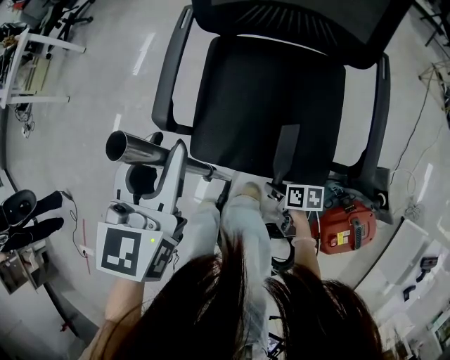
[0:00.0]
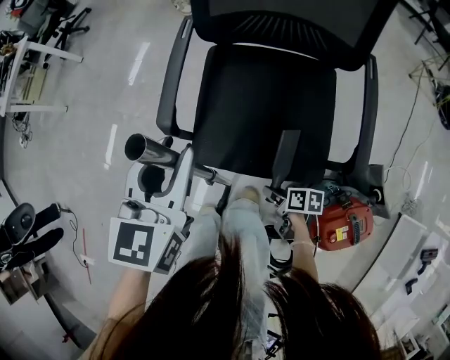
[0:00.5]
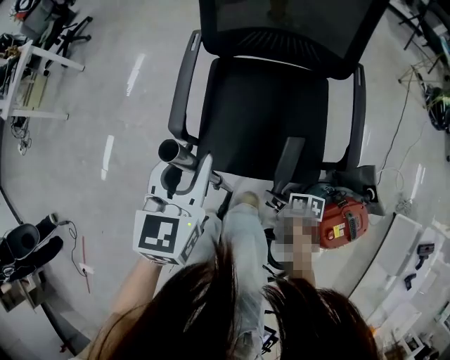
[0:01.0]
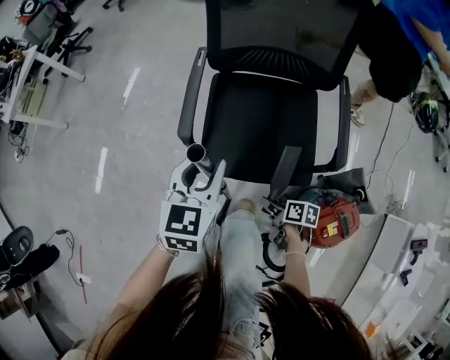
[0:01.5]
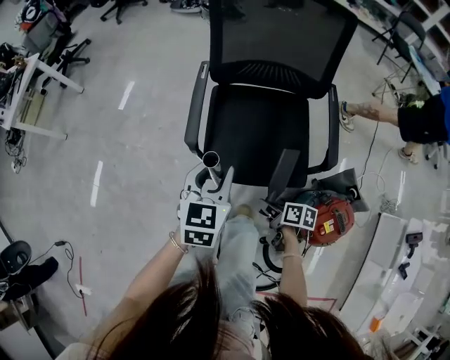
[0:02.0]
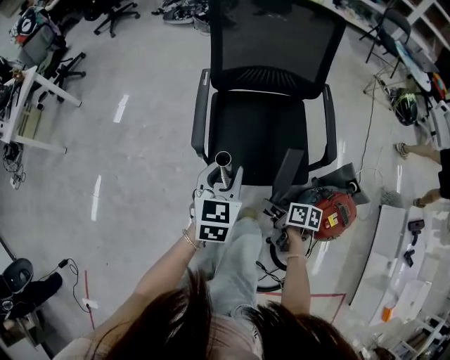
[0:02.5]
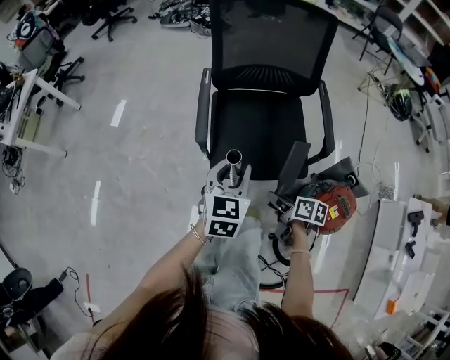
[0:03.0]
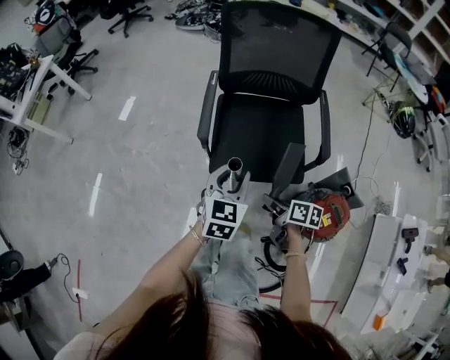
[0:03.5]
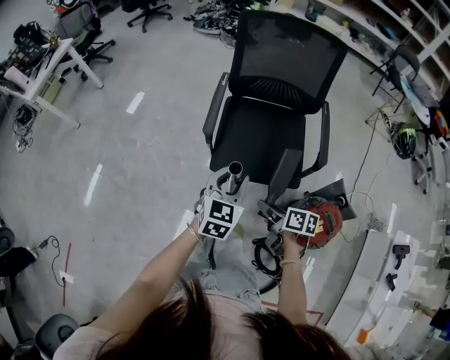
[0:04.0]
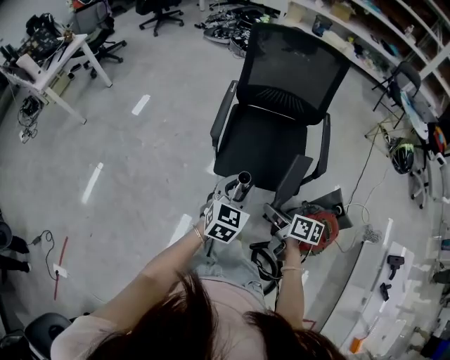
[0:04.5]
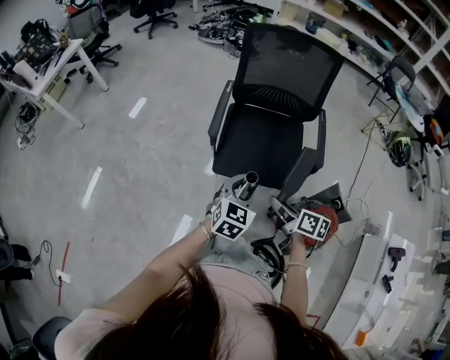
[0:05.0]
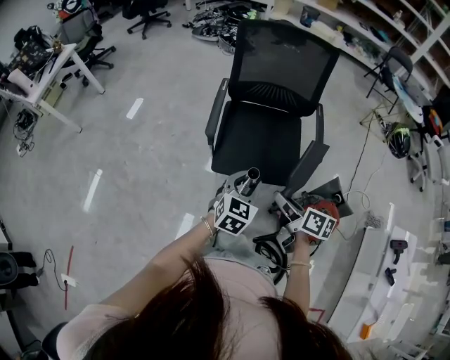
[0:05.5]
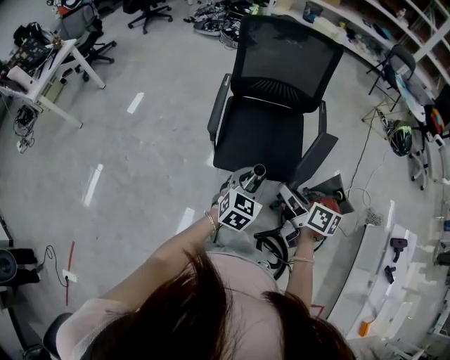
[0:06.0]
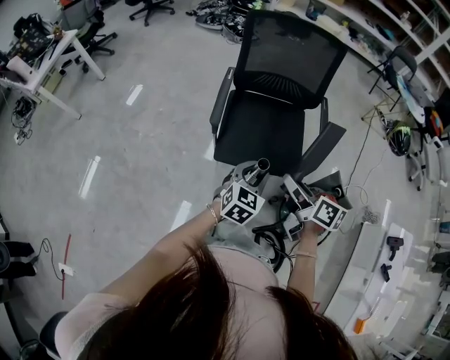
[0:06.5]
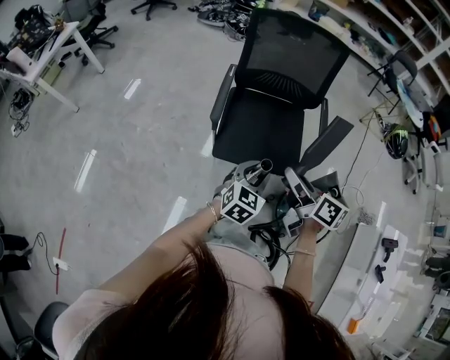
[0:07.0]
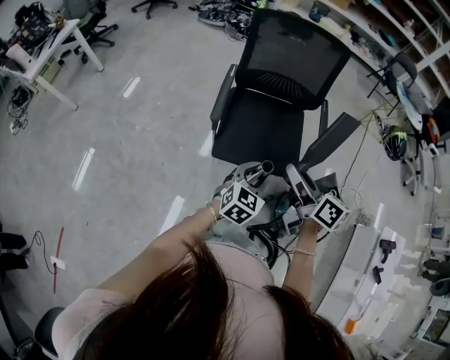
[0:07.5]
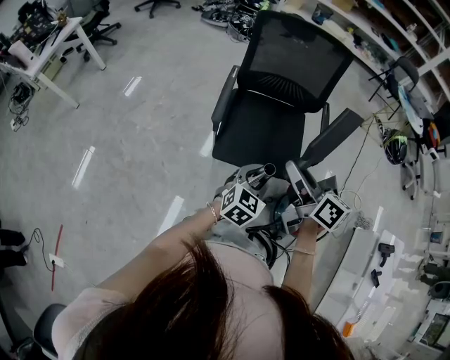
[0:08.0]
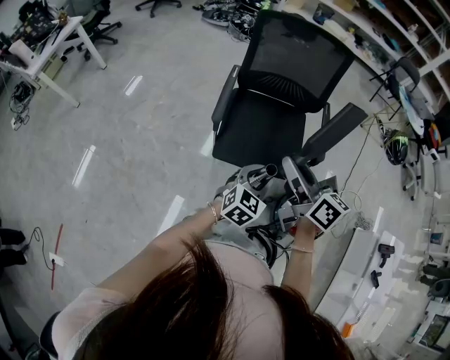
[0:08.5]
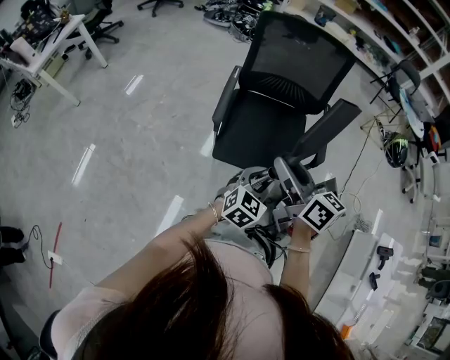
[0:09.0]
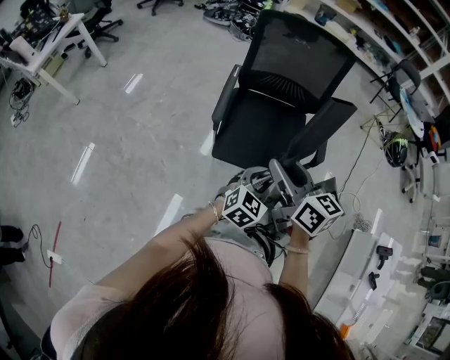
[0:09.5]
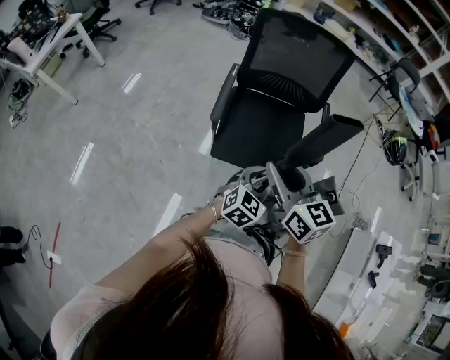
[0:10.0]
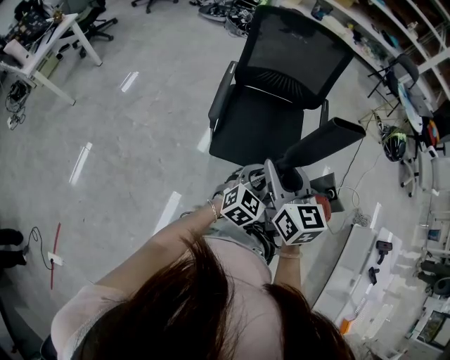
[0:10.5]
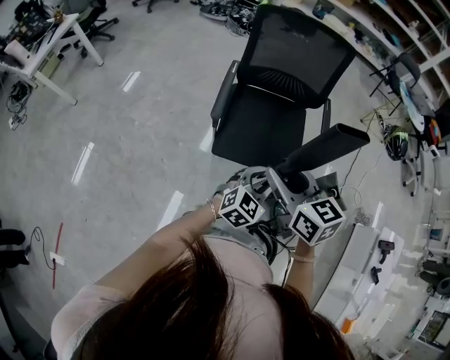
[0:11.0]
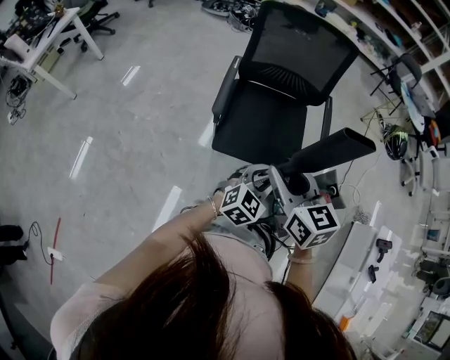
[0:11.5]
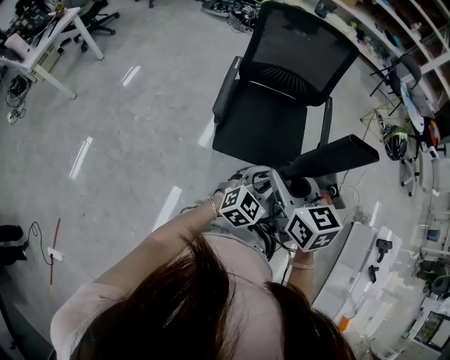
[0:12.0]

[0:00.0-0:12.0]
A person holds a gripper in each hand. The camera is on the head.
0.0 to 2.0 s: The left gripper goes approximately 5 cm backward, while the right gripper goes roughly 20 cm upward.
2.0 to 4.0 s: The right gripper goes approximately 15 cm upward and backward. Meanwhile the left gripper travels backward by approximately 15 cm.
4.0 to 6.0 s: The left gripper changes place by about 5 cm; the right gripper is displaced upward by roughly 15 cm.
6.0 to 8.0 s: The right gripper is displaced upward by about 10 cm.
8.0 to 10.0 s: The right gripper shifts by about 5 cm, and swivels roughly 30 degrees.
10.0 to 12.0 s: The grippers move only a little.

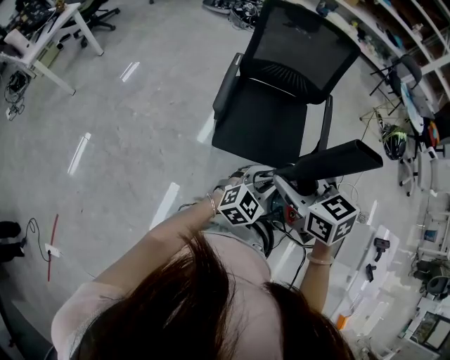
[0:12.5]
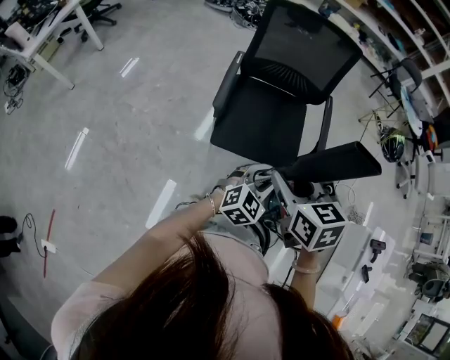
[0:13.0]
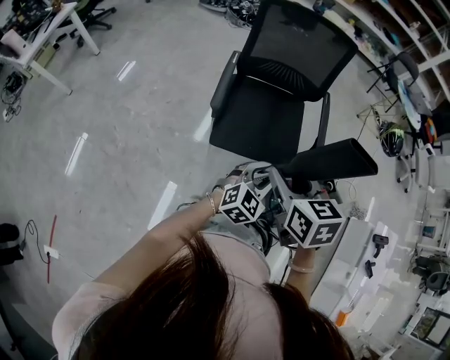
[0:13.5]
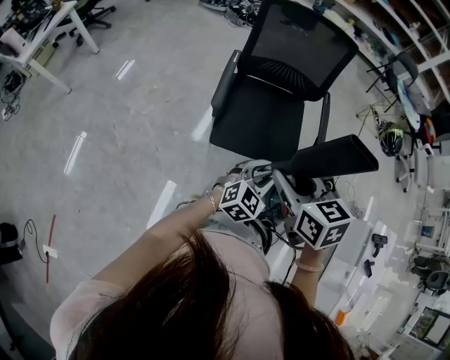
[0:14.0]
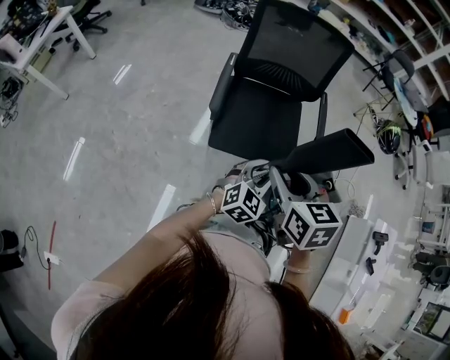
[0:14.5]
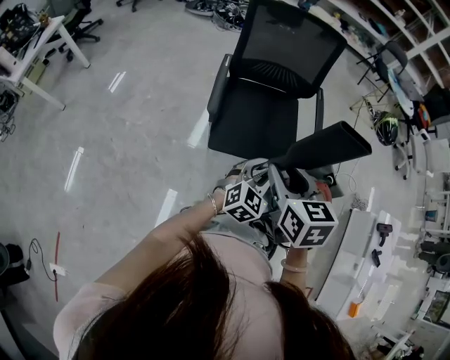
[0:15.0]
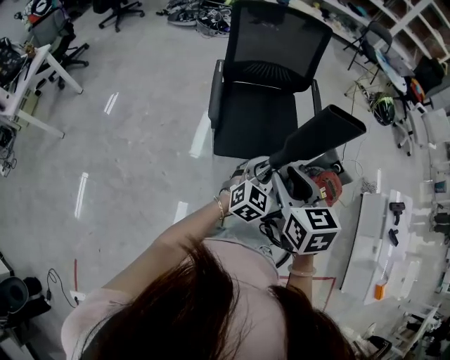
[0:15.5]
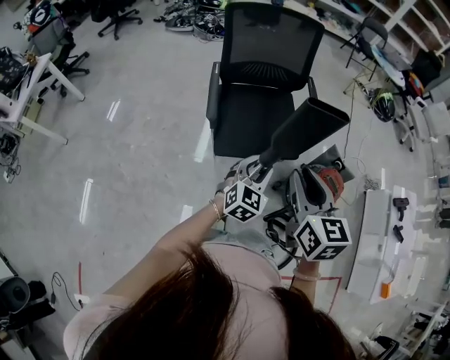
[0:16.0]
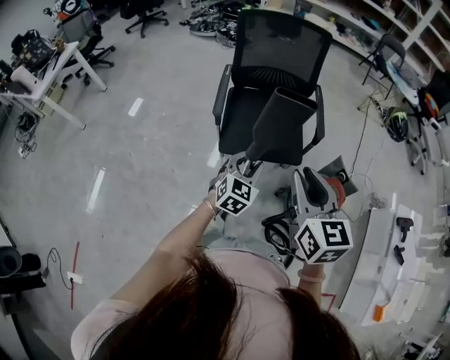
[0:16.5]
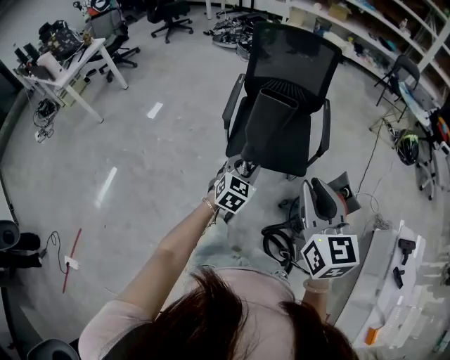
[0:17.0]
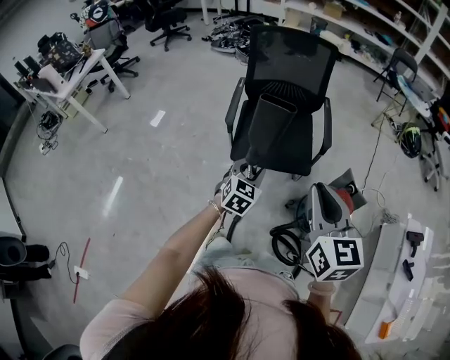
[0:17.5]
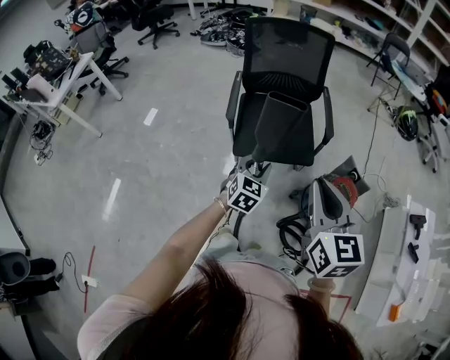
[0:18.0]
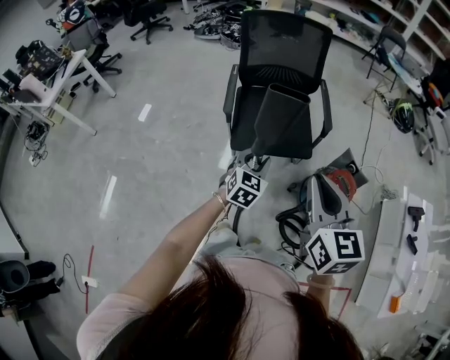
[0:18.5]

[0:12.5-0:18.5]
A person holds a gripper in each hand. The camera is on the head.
12.5 to 14.5 s: The right gripper changes its angle by some 20 degrees.
14.5 to 16.5 s: The left gripper travels backward by roughly 5 cm. The right gripper travels to the right, backward and upward by roughly 15 cm.
16.5 to 18.5 s: The right gripper heads backward, covering roughly 5 cm.

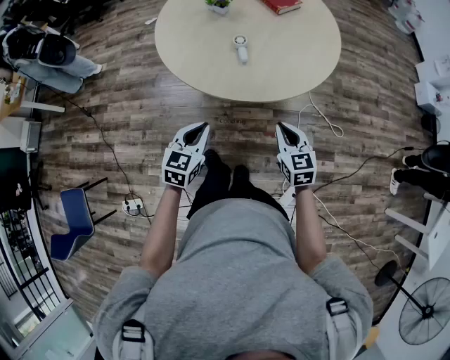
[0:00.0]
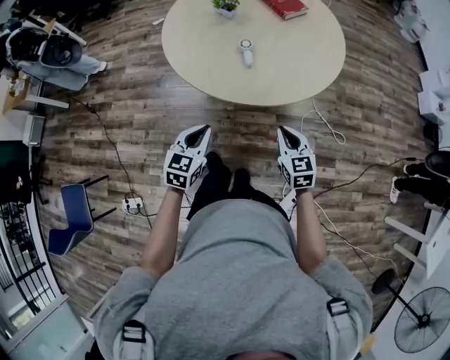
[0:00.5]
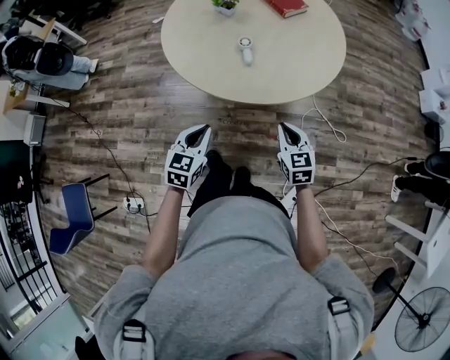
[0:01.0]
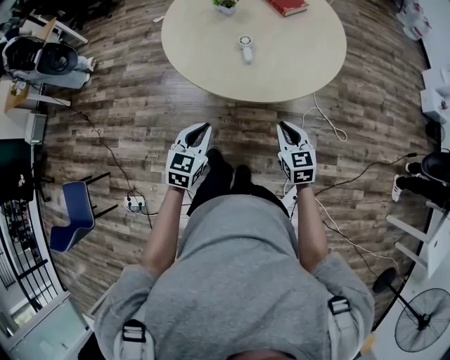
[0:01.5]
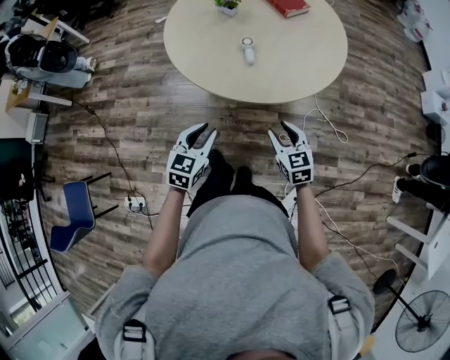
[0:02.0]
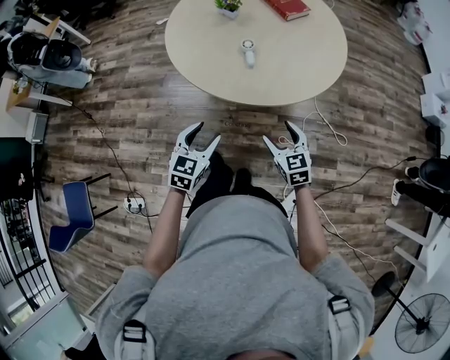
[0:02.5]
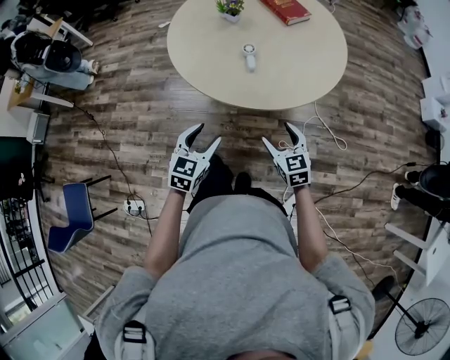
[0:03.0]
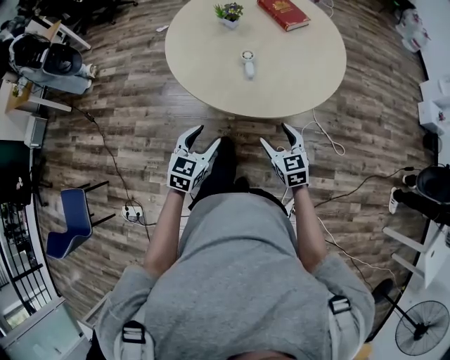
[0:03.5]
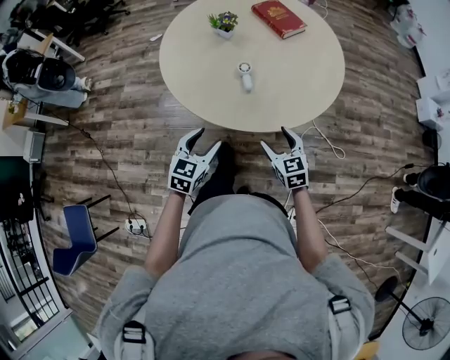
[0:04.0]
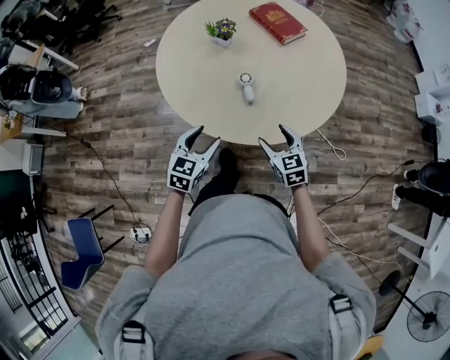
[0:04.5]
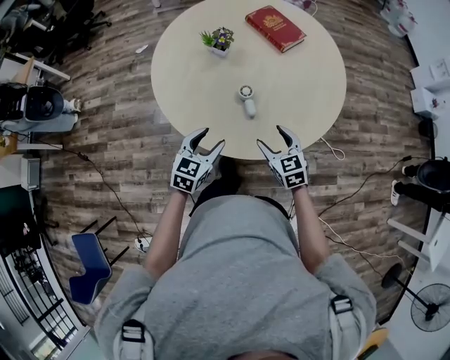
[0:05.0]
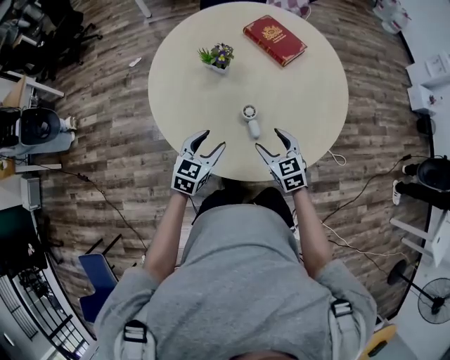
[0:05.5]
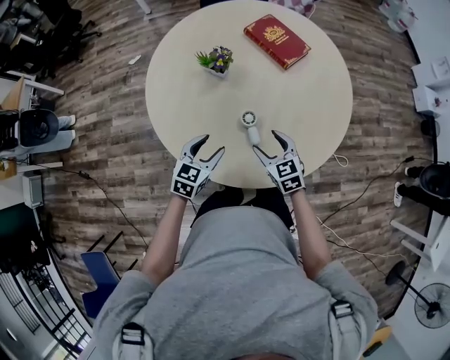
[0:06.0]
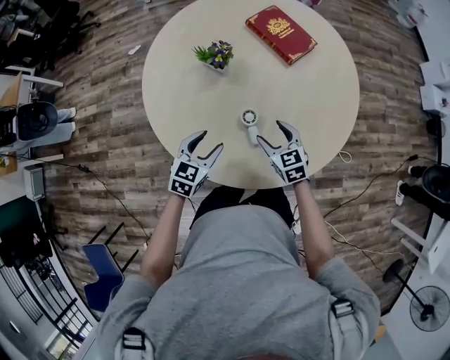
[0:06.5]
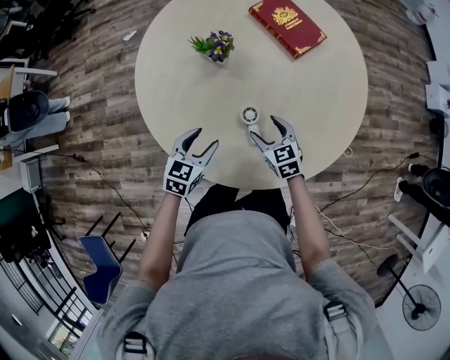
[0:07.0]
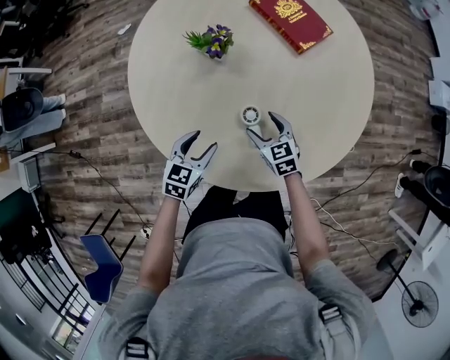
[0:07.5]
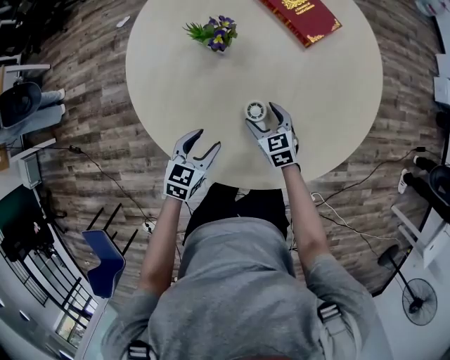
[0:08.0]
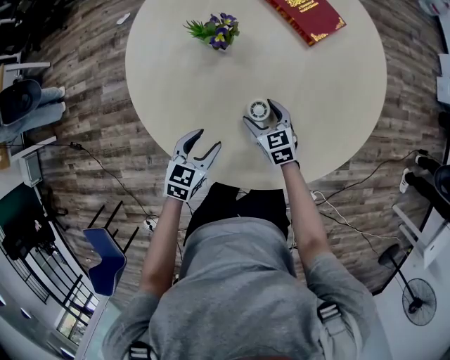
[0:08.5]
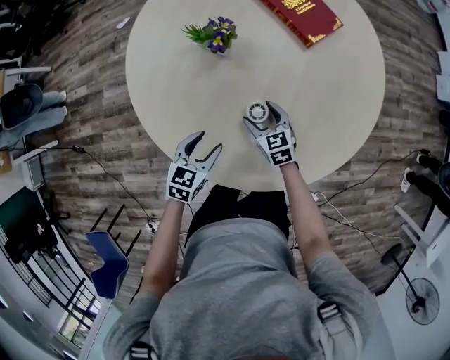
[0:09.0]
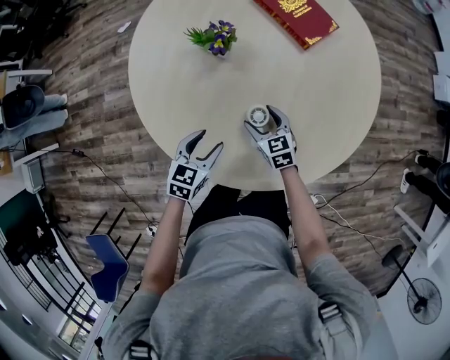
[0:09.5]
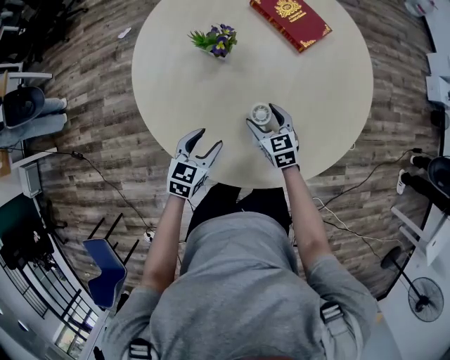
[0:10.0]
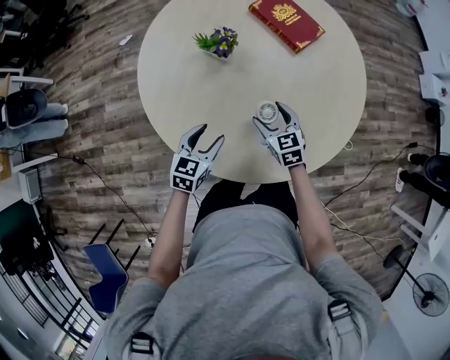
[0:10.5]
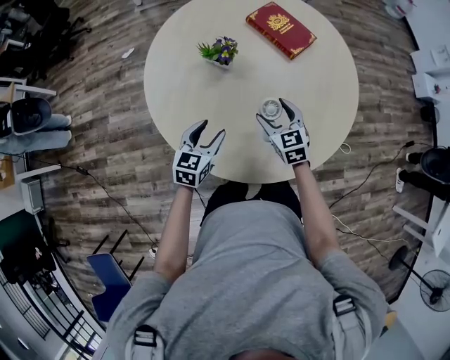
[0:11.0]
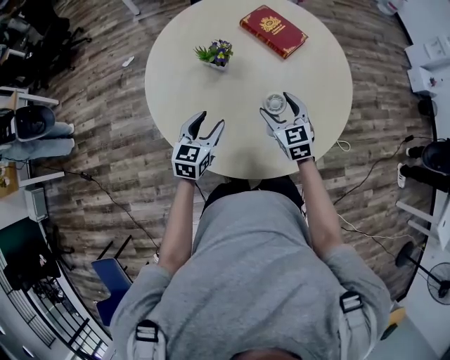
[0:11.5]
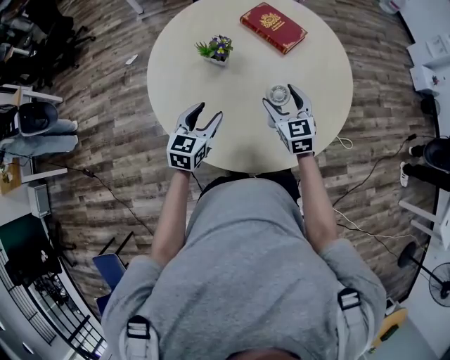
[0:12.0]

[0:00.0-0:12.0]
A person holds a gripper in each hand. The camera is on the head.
0.0 to 2.0 s: The right gripper opens up; the left gripper opens.
2.0 to 4.0 s: Both grippers move forward, roughly 10 cm. The right gripper opens up. The left gripper opens its fingers.
4.0 to 6.0 s: The two grippers go roughly 25 cm forward.
6.0 to 8.0 s: The left gripper moves downward, some 10 cm, while the right gripper shifts about 20 cm downward and forward.
8.0 to 10.0 s: The right gripper moves upward, about 5 cm.
10.0 to 12.0 s: Both grippers travel together upward, roughly 15 cm.
